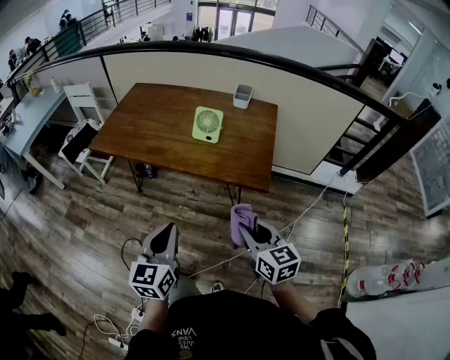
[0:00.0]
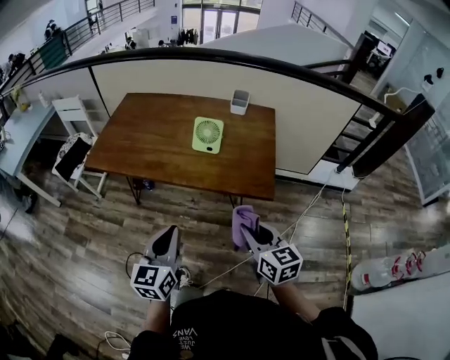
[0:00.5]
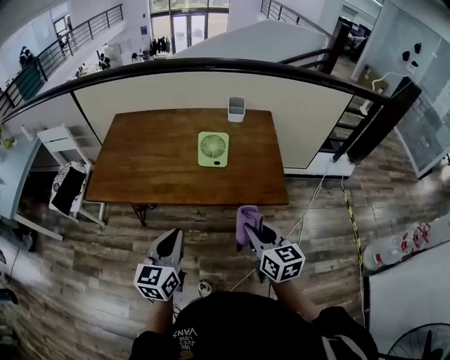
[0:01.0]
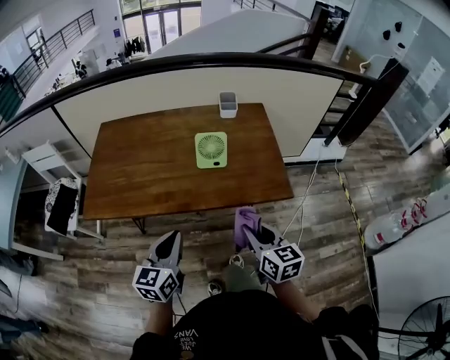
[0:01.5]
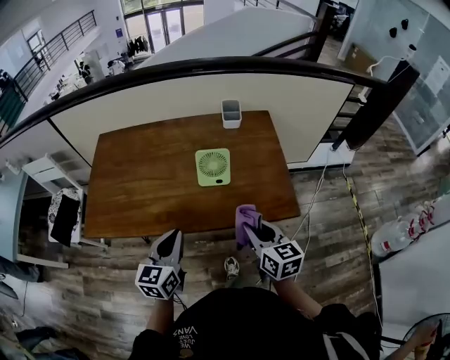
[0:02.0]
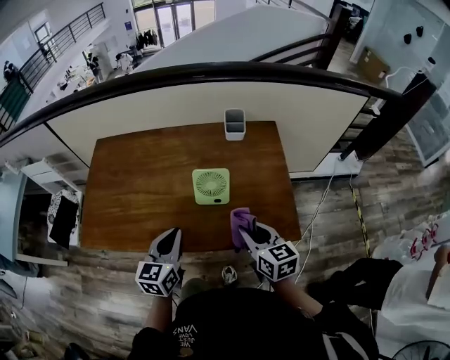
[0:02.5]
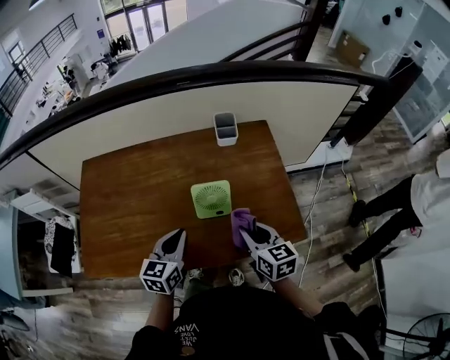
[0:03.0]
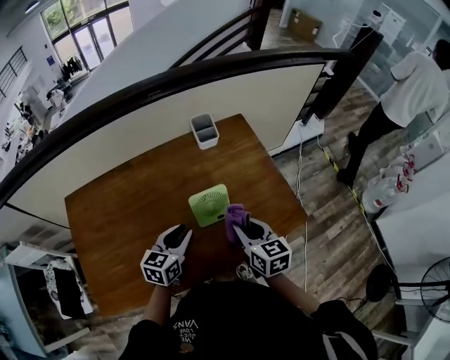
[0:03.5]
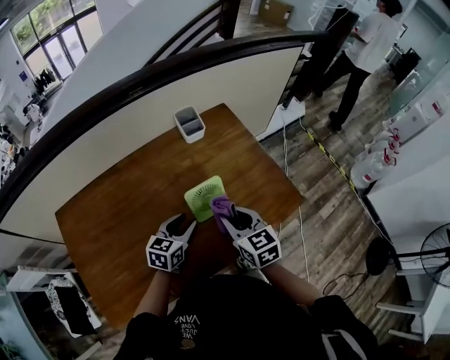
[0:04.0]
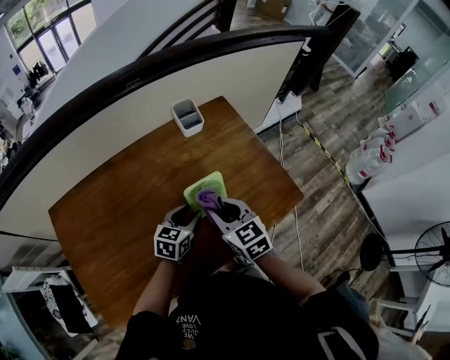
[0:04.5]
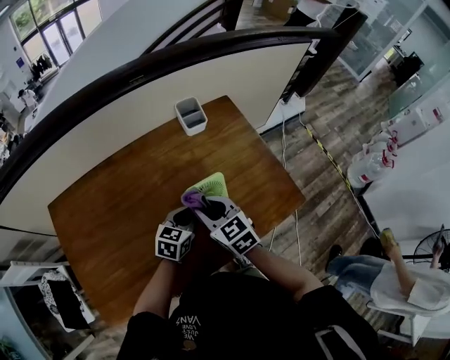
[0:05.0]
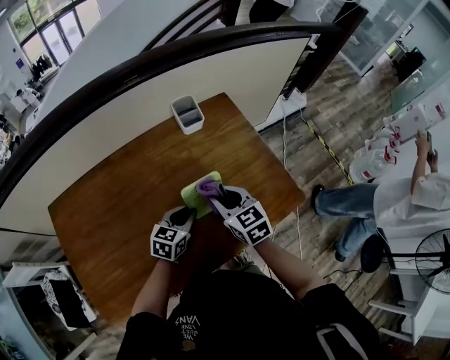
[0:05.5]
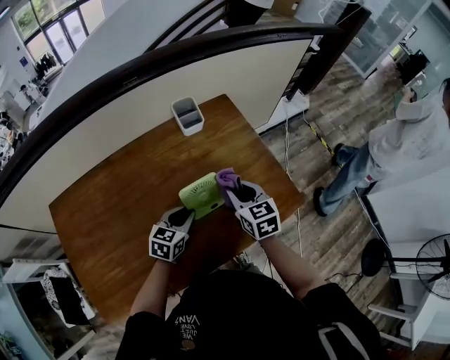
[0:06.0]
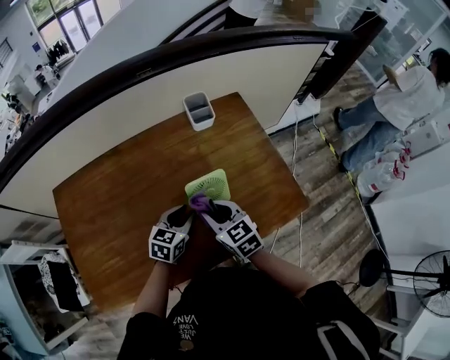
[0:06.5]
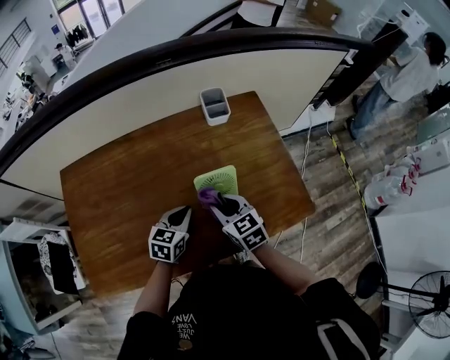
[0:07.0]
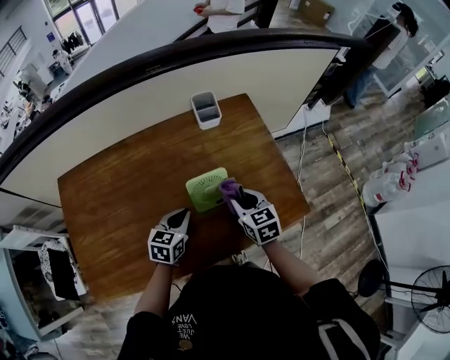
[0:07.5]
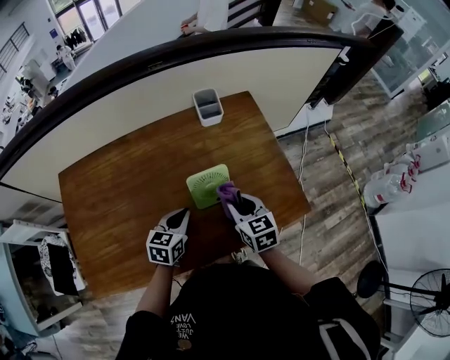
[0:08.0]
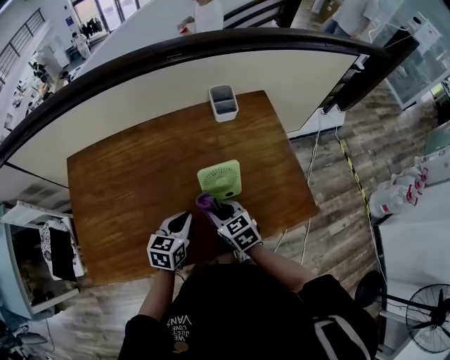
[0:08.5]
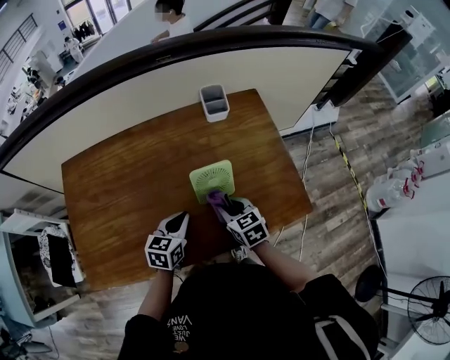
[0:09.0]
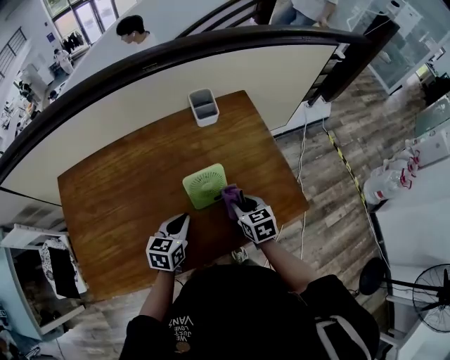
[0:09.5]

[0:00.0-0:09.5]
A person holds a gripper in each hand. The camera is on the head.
0.0 to 2.0 s: The grippers both shift forward and to the left by roughly 30 cm. The left gripper changes its angle by roughly 20 degrees. Meanwhile the right gripper rotates roughly 20 degrees.
2.0 to 4.0 s: The left gripper changes place by roughly 25 cm, changes its angle by some 40 degrees, and opens its fingers; the right gripper ends up about 20 cm from where it was.
4.0 to 5.5 s: The right gripper goes about 5 cm forward, and moves approximately 10 cm to the left and comes back.
5.5 to 7.5 s: The right gripper moves left and right over about 10 cm, changing direction 2 times.
7.5 to 9.5 s: The right gripper moves approximately 10 cm to the left and comes back.

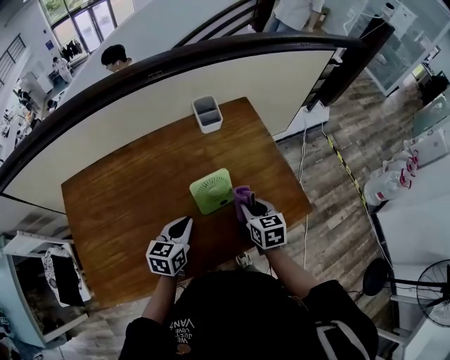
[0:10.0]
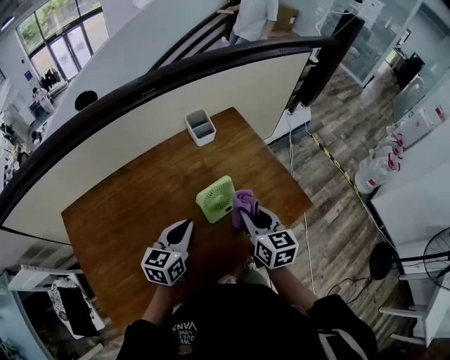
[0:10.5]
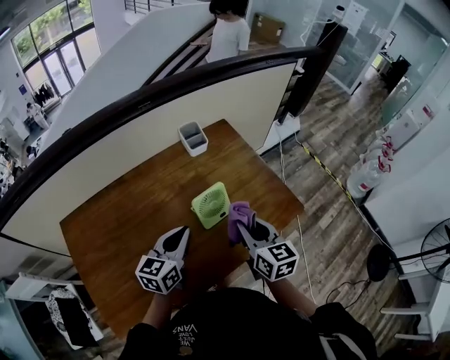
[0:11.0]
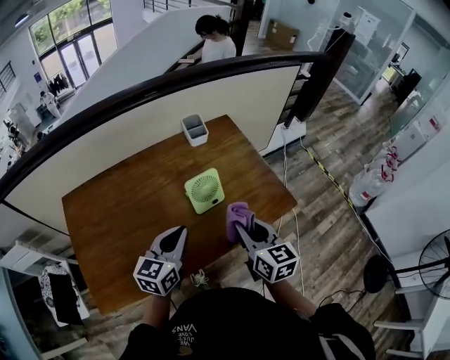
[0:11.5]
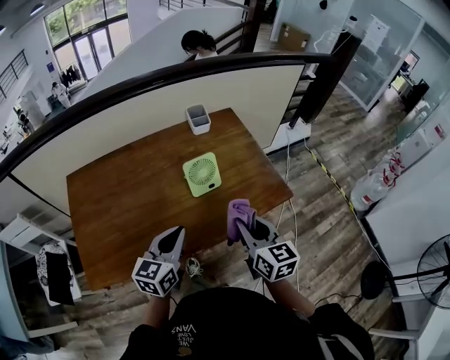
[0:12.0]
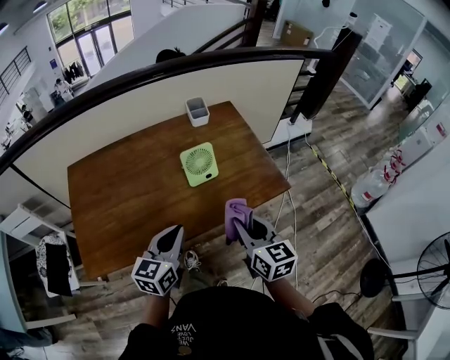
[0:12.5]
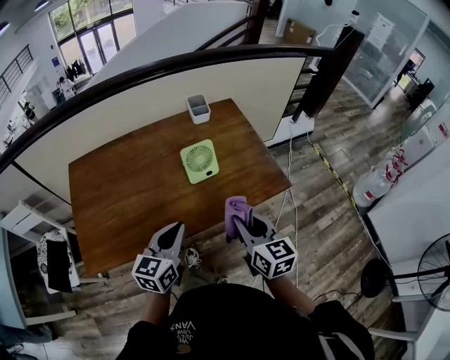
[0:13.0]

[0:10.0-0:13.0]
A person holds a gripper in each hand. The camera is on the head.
10.0 to 11.5 s: The two grippers go roughly 15 cm upward and backward. The right gripper swivels roughly 20 degrees.
11.5 to 13.0 s: The two grippers go roughly 10 cm backward.

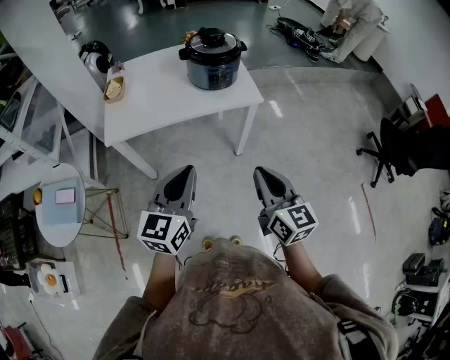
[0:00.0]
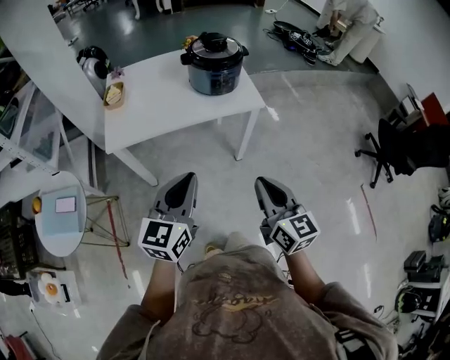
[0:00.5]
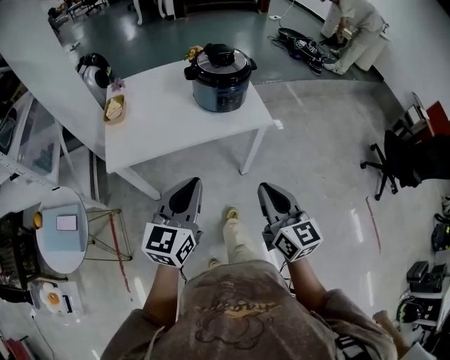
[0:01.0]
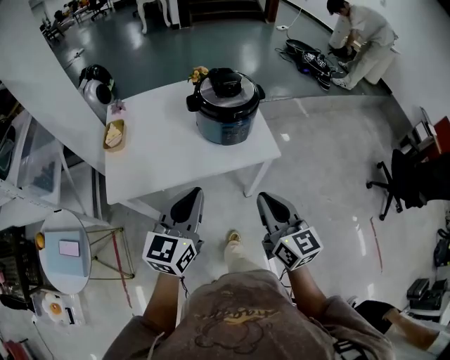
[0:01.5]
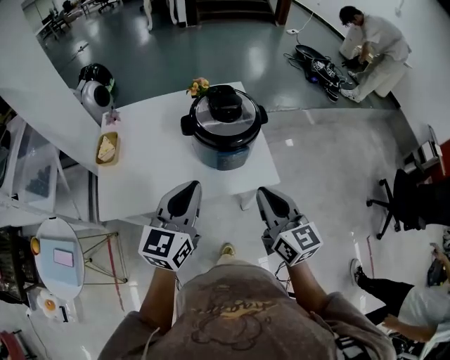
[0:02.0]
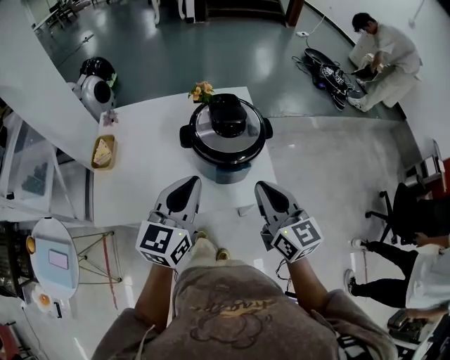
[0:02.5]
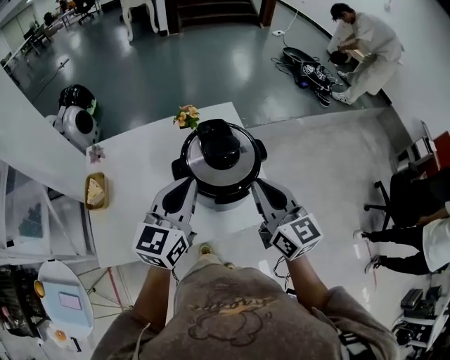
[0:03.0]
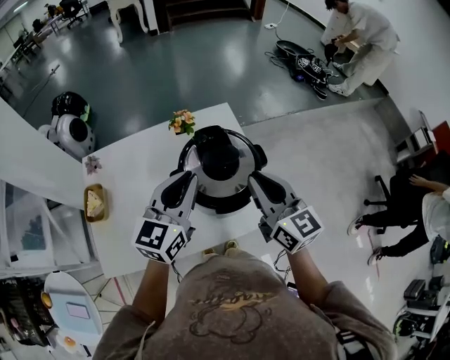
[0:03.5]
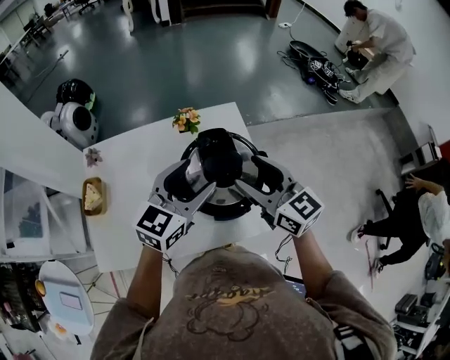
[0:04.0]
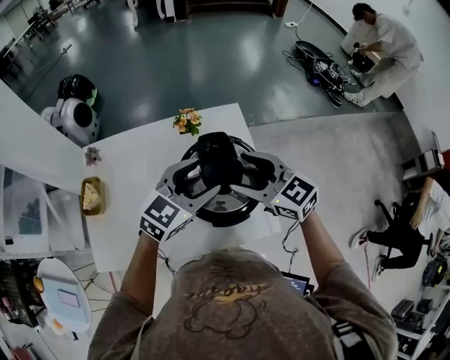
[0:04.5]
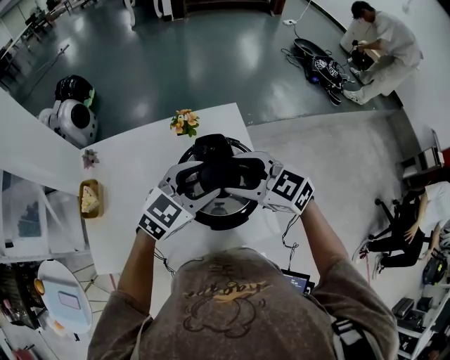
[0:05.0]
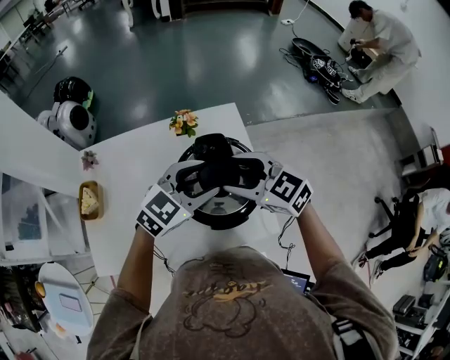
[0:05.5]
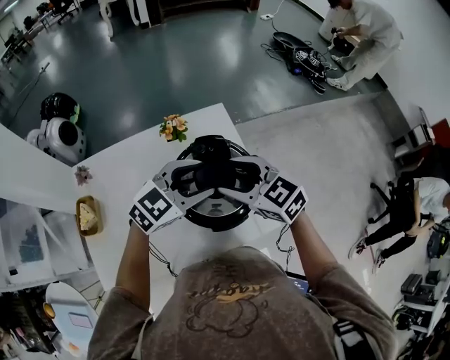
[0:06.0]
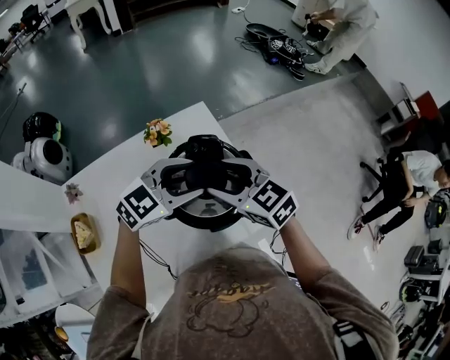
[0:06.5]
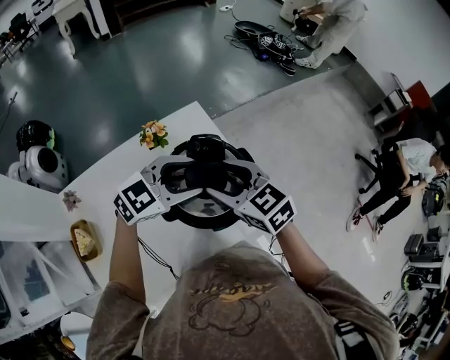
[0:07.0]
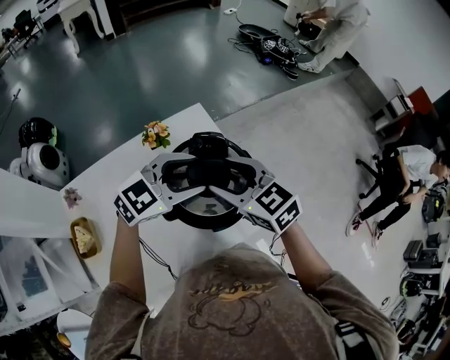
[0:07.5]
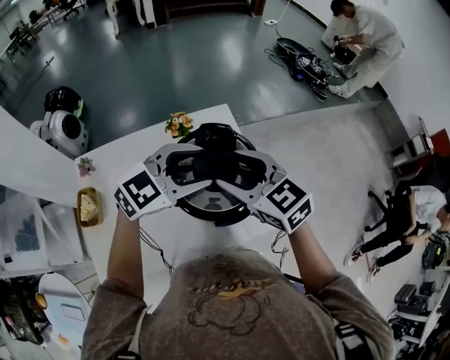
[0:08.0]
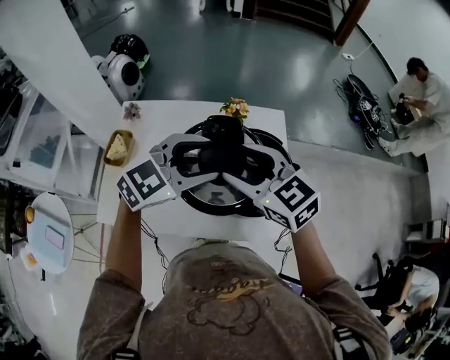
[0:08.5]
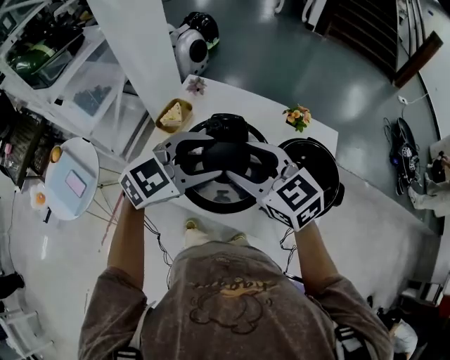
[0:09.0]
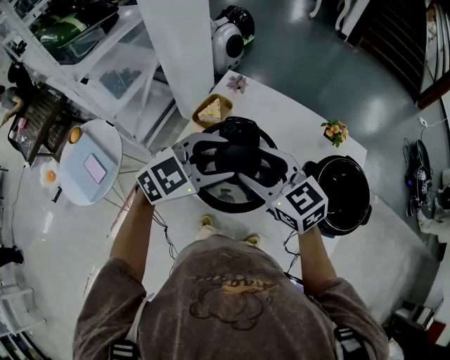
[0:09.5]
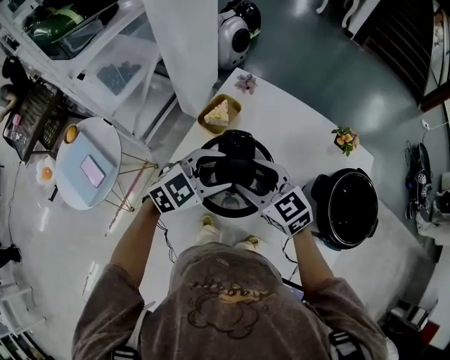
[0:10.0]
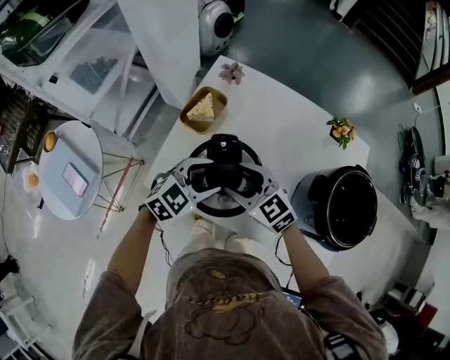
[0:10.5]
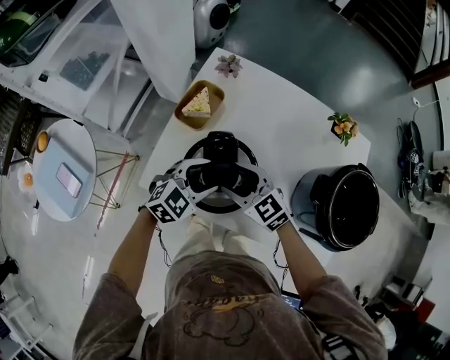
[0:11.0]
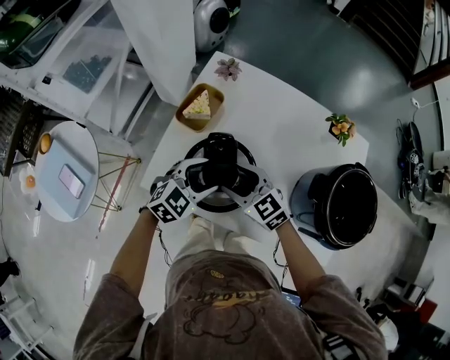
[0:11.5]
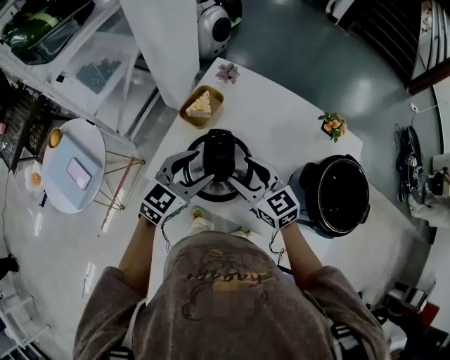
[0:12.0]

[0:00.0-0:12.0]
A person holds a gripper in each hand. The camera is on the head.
0.0 to 2.0 s: Both grippers travel together forward, some 30 cm.
2.0 to 4.0 s: Both grippers travel together forward, roughly 25 cm. The left gripper opens, while the right gripper opens.
4.0 to 6.0 s: The left gripper shifts by approximately 5 cm, and changes its angle by about 30 degrees, while the right gripper shifts by approximately 5 cm, and changes its angle by some 20 degrees.
6.0 to 8.0 s: The two grippers go some 5 cm upward.
8.0 to 10.0 s: The right gripper moves roughly 40 cm, and rotates about 50 degrees. Meanwhile the left gripper ends up approximately 40 cm from where it was, and turns by roughly 50 degrees.
10.0 to 12.0 s: The left gripper moves about 10 cm downward and comes back, and turns by approximately 20 degrees.

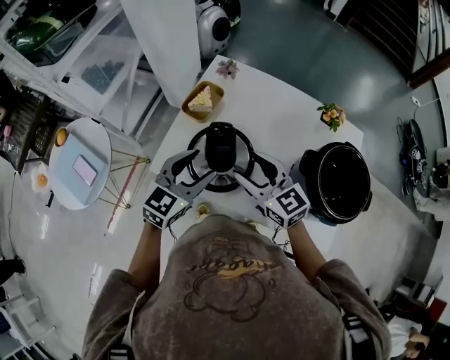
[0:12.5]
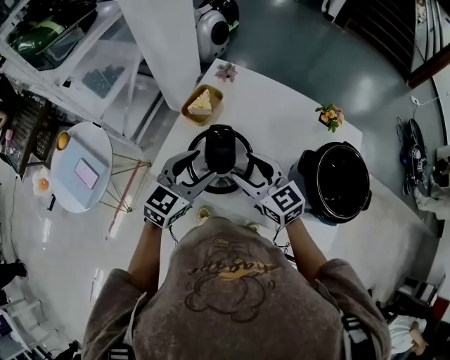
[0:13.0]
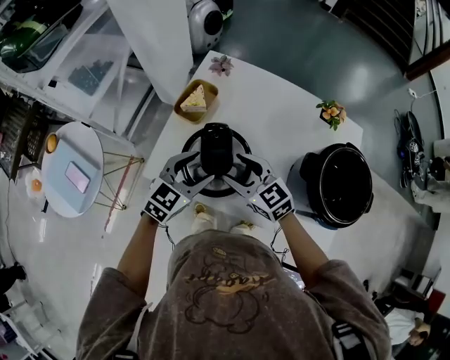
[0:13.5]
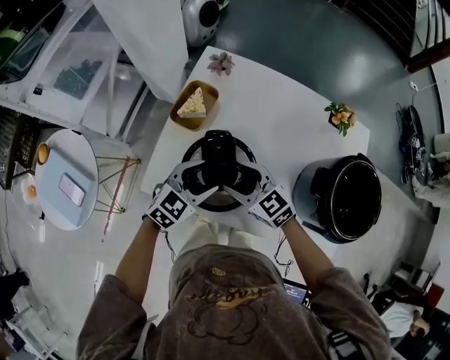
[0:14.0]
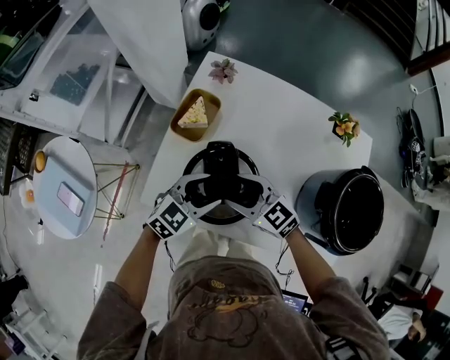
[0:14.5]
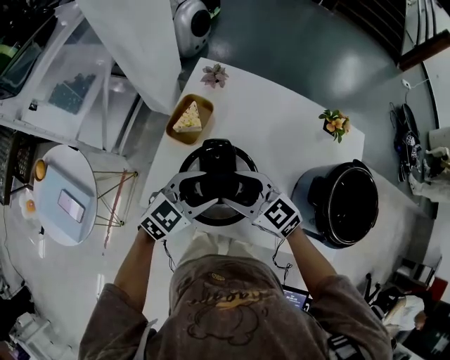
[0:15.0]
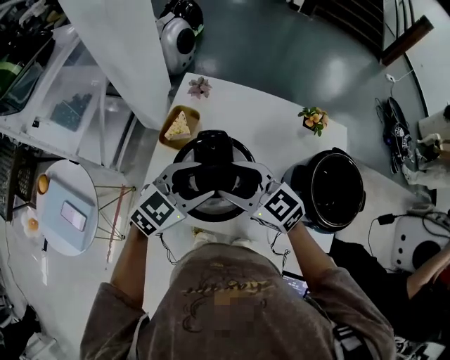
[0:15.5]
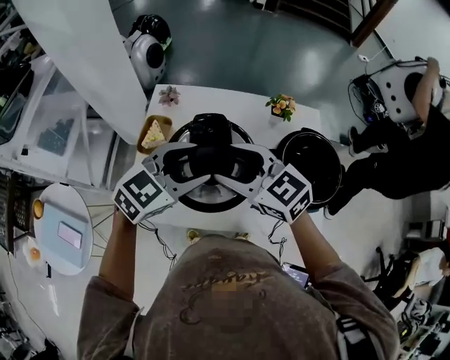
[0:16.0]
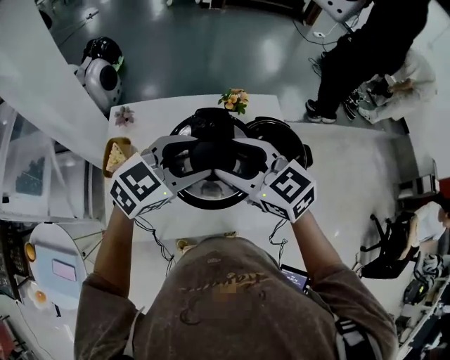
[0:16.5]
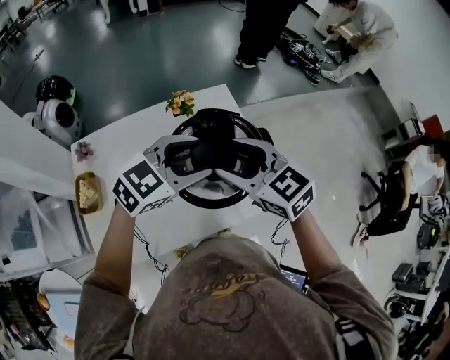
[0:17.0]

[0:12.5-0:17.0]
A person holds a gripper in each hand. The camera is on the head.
12.5 to 14.5 s: Both grippers travel together downward, roughly 10 cm. The left gripper swivels approximately 20 degrees.
14.5 to 17.0 s: The left gripper ends up about 40 cm from where it was, and rotates some 50 degrees; the right gripper ends up approximately 40 cm from where it was, and rotates approximately 50 degrees.
